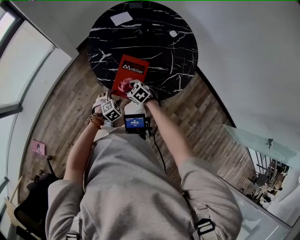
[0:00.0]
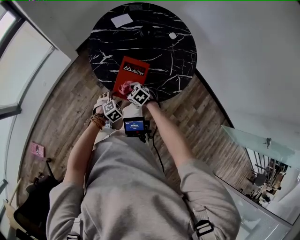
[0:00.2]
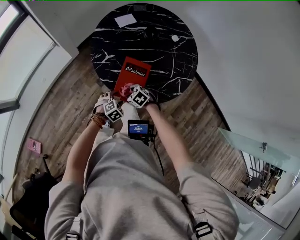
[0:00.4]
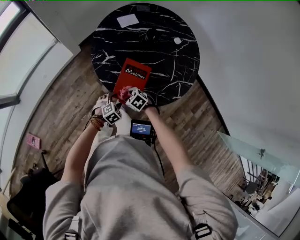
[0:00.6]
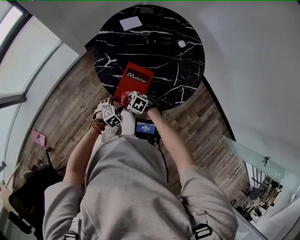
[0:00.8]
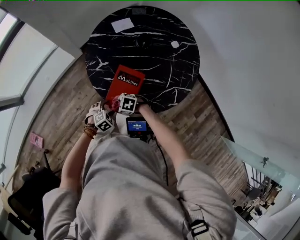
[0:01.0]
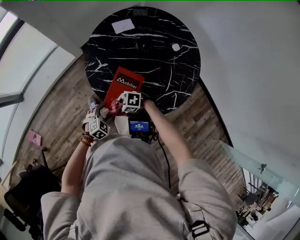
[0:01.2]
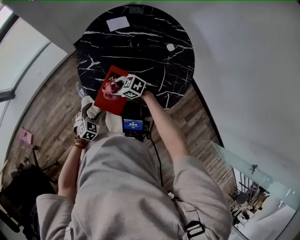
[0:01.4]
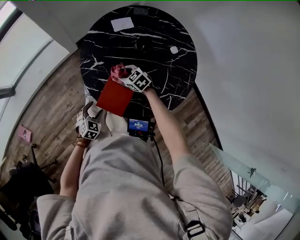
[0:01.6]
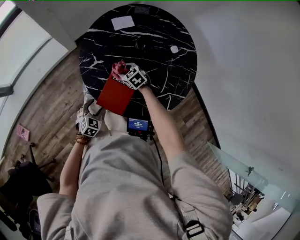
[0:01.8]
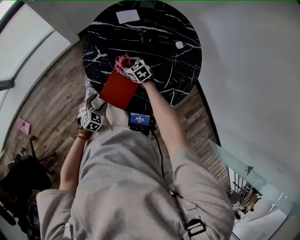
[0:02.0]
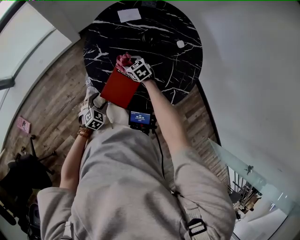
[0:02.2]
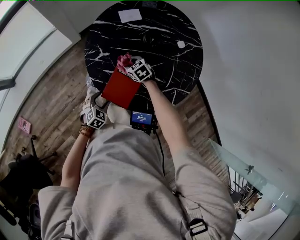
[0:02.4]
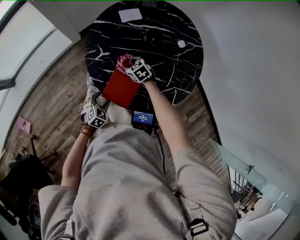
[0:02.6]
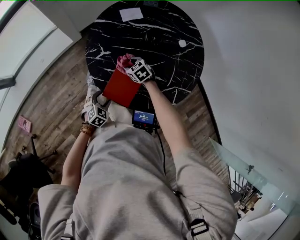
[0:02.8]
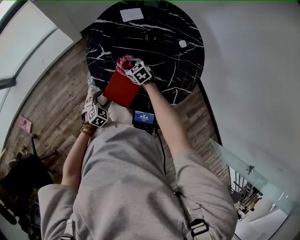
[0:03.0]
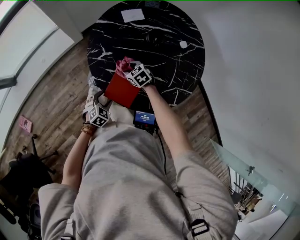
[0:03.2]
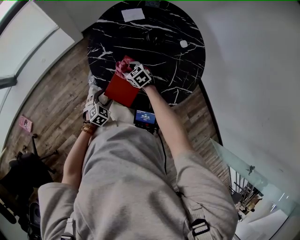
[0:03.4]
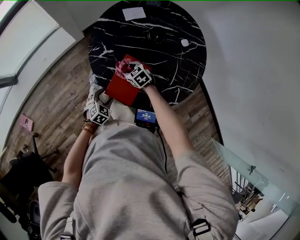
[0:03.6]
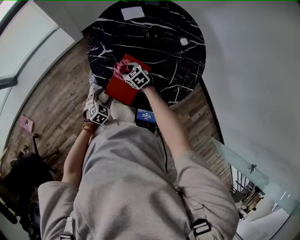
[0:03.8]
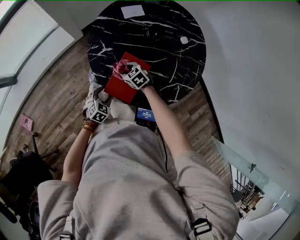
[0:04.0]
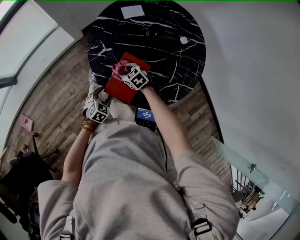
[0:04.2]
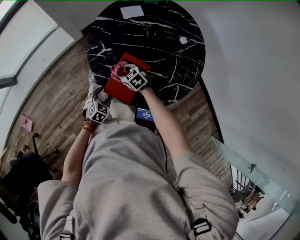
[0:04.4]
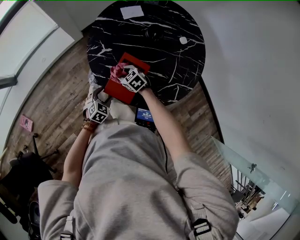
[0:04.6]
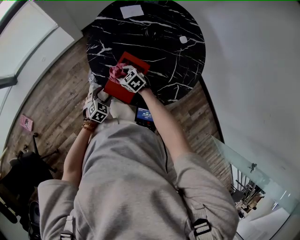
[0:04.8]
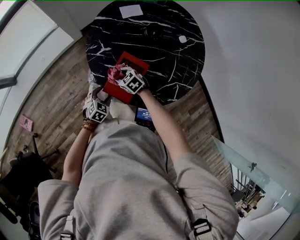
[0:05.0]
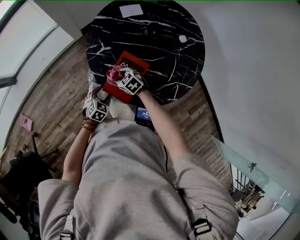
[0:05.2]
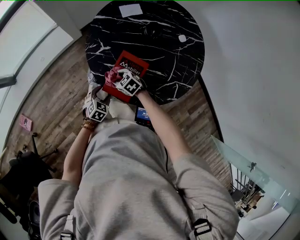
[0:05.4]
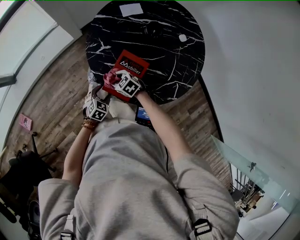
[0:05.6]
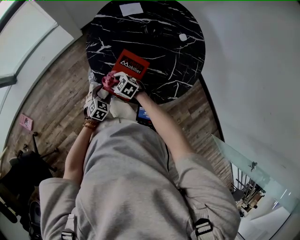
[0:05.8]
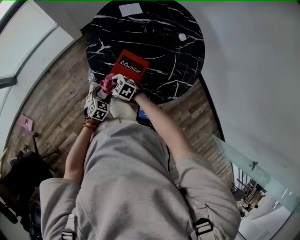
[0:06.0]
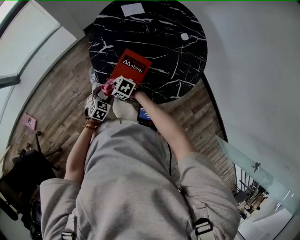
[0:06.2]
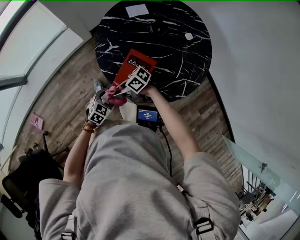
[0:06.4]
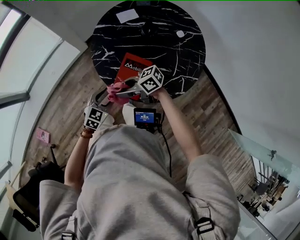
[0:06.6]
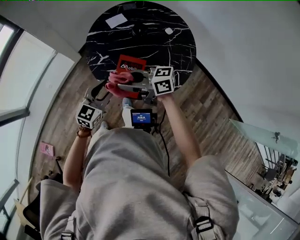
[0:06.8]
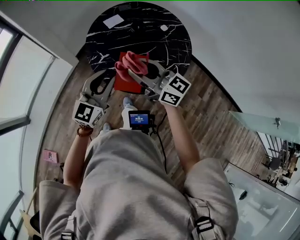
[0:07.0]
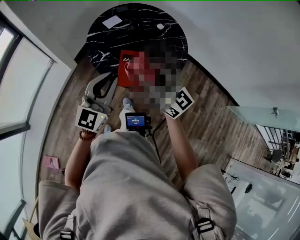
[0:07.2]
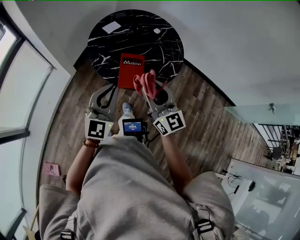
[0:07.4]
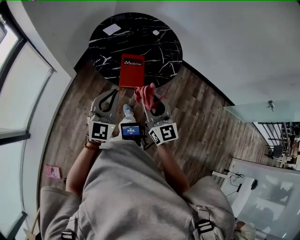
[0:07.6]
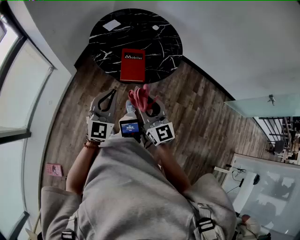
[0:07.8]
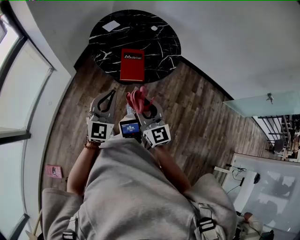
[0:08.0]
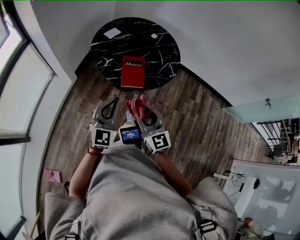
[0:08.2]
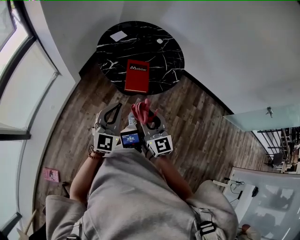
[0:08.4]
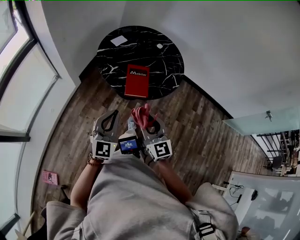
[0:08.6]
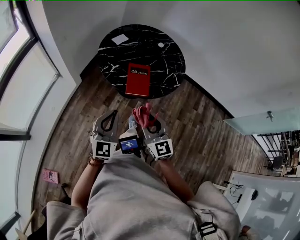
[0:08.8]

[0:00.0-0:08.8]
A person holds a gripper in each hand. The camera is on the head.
0:00.0 to 0:01.4: The left gripper turns by roughly 20 degrees. Meanwhile the right gripper shifts by approximately 10 cm, and turns by some 30 degrees.
0:01.4 to 0:03.0: The right gripper moves about 10 cm, and swivels some 30 degrees.
0:03.0 to 0:04.4: The right gripper shifts some 5 cm backward.
0:04.4 to 0:05.8: The right gripper goes approximately 10 cm to the left and backward.
0:05.8 to 0:07.4: Both grippers move upward, approximately 40 cm. The right gripper angles its fingers upward, by roughly 50 degrees; the left gripper tips its fingers upward by roughly 50 degrees, and closes its fingers.
0:07.4 to 0:08.8: The right gripper goes about 15 cm backward and downward. Meanwhile the left gripper moves backward, about 10 cm.

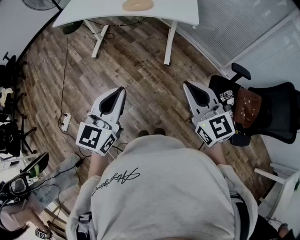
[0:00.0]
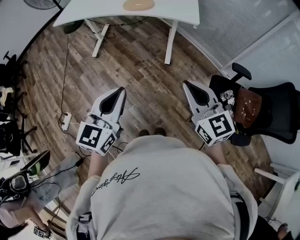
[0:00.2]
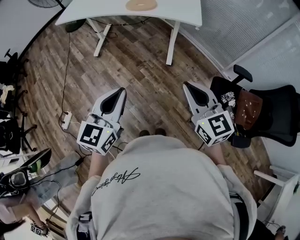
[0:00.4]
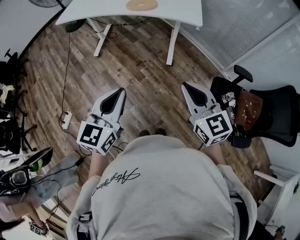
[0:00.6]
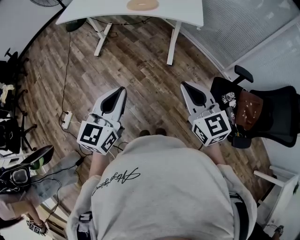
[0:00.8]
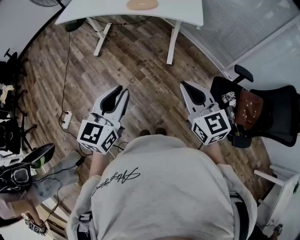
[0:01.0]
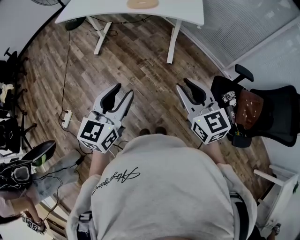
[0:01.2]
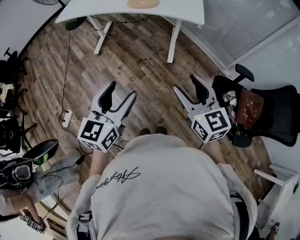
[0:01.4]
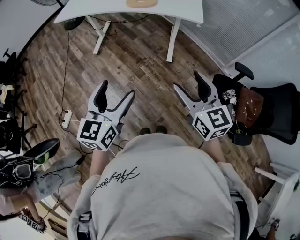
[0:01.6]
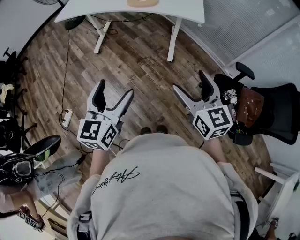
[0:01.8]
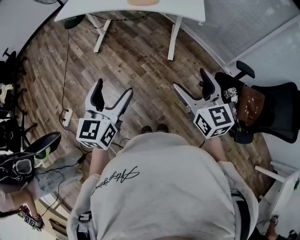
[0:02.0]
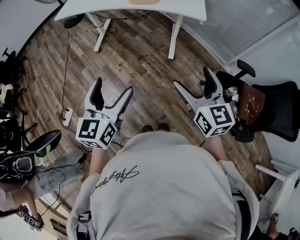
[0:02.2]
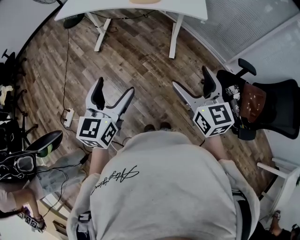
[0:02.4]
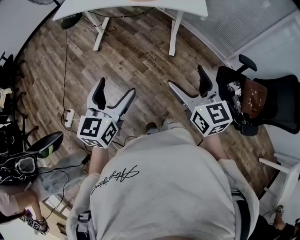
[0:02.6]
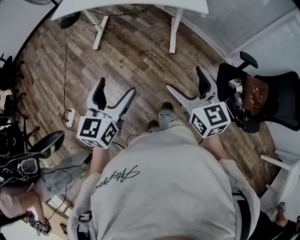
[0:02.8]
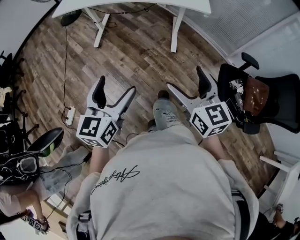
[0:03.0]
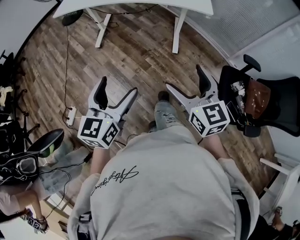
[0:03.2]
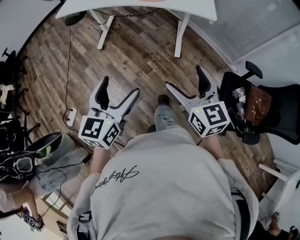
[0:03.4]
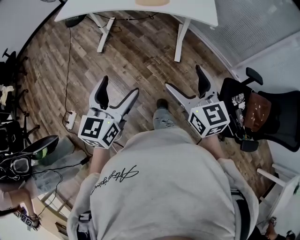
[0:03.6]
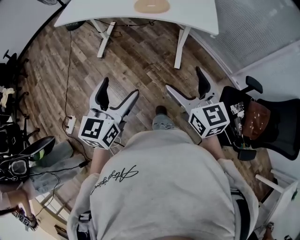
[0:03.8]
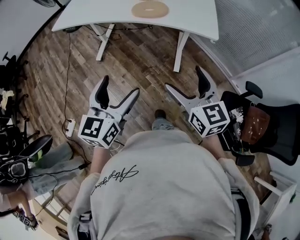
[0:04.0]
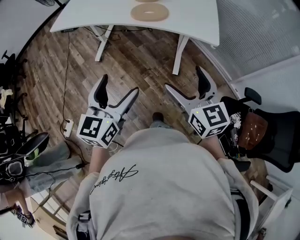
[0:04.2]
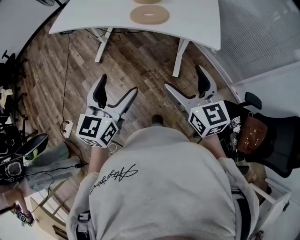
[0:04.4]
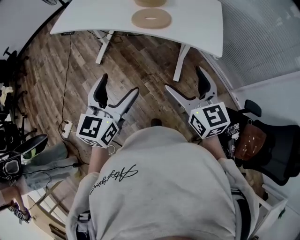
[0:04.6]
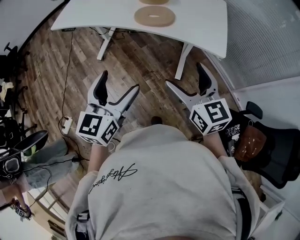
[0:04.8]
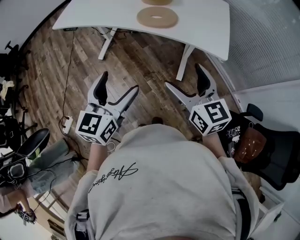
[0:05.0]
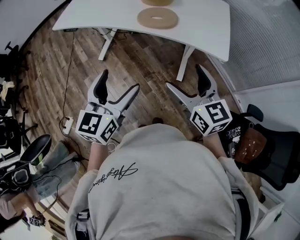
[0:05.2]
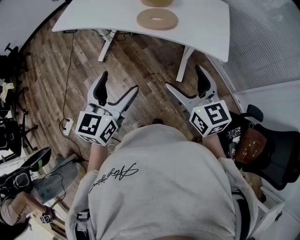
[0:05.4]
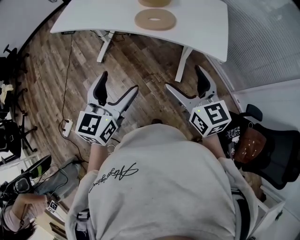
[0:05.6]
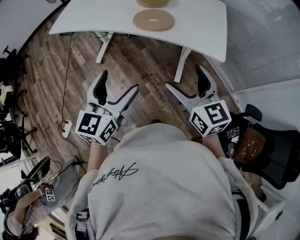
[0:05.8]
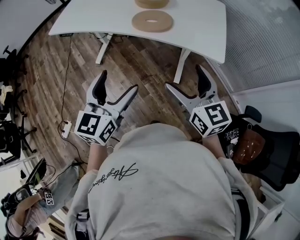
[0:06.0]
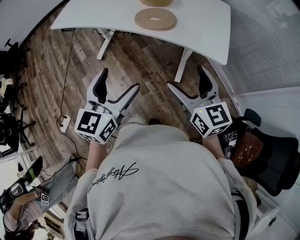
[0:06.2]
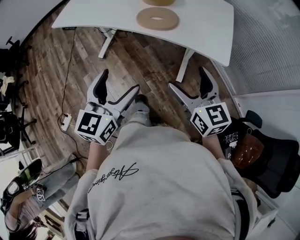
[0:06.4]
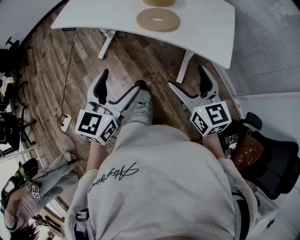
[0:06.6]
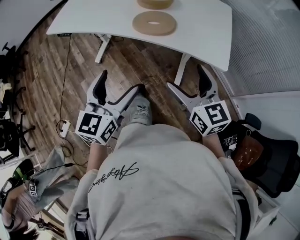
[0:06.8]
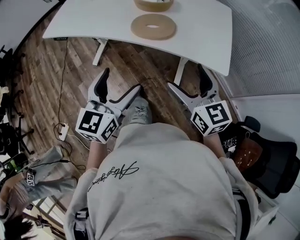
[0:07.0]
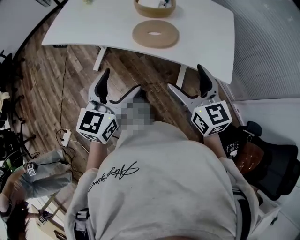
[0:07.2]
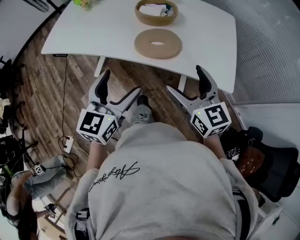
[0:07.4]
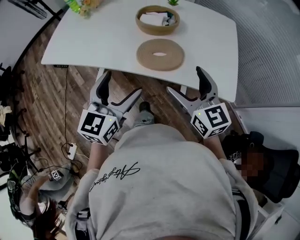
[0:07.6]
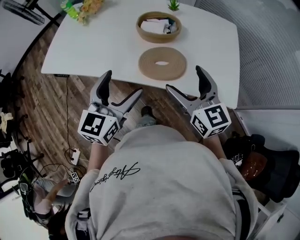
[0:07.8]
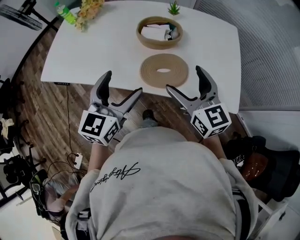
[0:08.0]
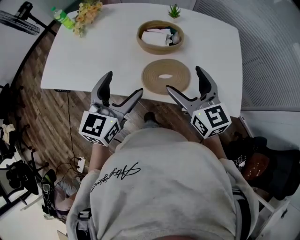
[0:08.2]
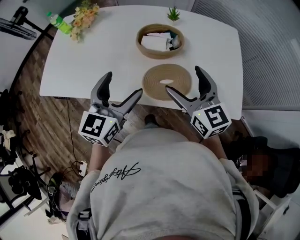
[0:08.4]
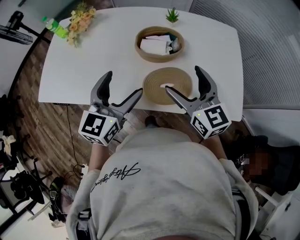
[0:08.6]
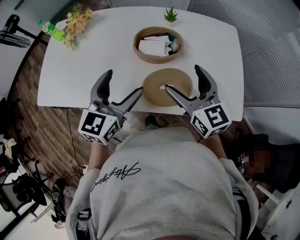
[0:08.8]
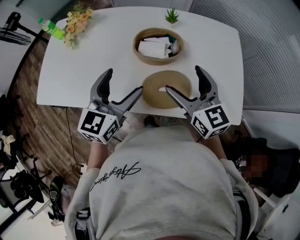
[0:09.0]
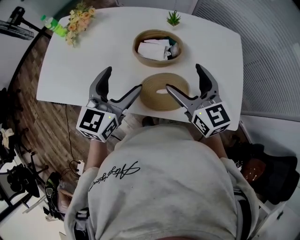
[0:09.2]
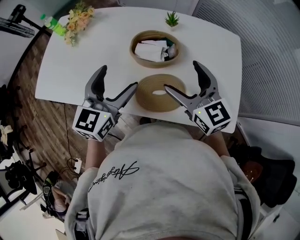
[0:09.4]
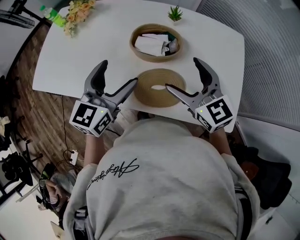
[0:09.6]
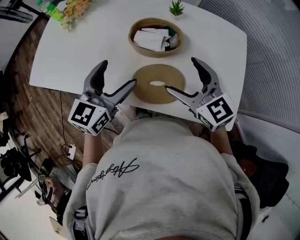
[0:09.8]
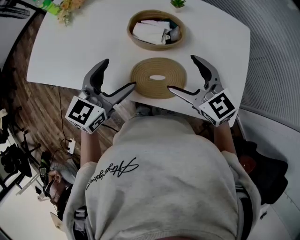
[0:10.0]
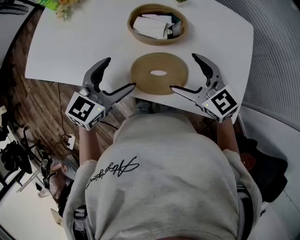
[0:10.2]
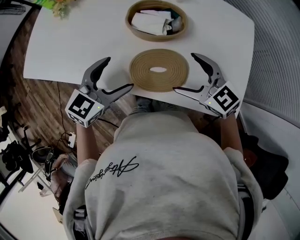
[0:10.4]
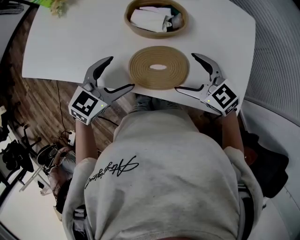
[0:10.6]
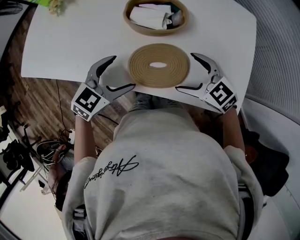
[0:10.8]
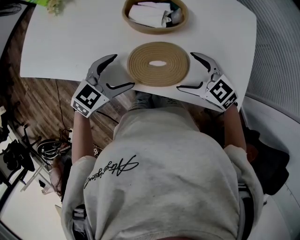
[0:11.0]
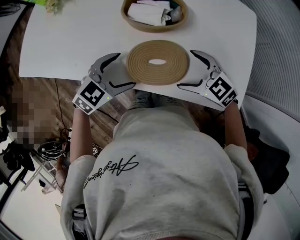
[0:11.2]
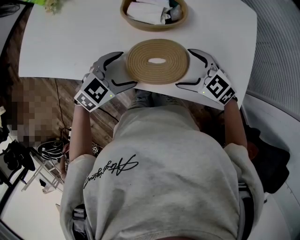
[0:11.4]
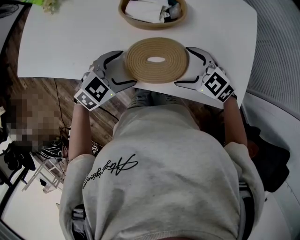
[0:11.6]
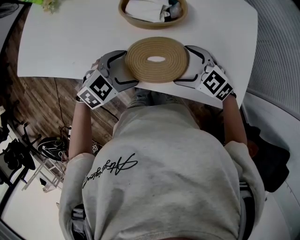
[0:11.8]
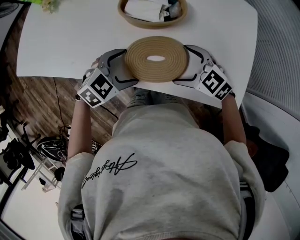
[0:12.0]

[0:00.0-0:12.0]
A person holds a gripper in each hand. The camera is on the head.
0:00.0 to 0:01.6: The right gripper opens its fingers. Meanwhile the left gripper opens.
0:01.6 to 0:03.0: Both grippers move to the left, roughly 10 cm.
0:03.0 to 0:04.4: The grippers both shift forward by approximately 25 cm.
0:04.4 to 0:06.0: The grippers both shift forward by about 5 cm.
0:06.0 to 0:07.6: The grippers both shift forward by some 20 cm.
0:07.6 to 0:09.0: The two grippers go approximately 20 cm forward.
0:09.0 to 0:10.4: The two grippers go about 10 cm downward. The right gripper swivels approximately 40 degrees.
0:10.4 to 0:12.0: The two grippers go roughly 10 cm downward. The left gripper turns by roughly 30 degrees.

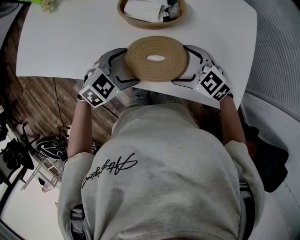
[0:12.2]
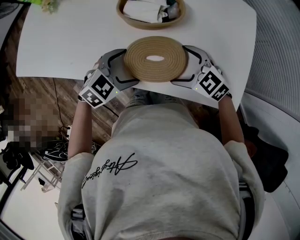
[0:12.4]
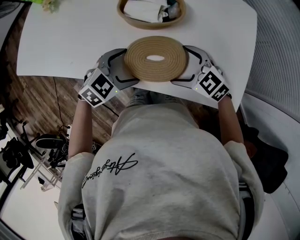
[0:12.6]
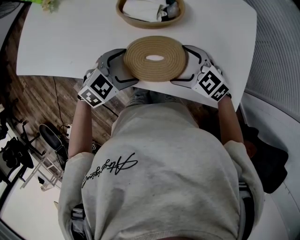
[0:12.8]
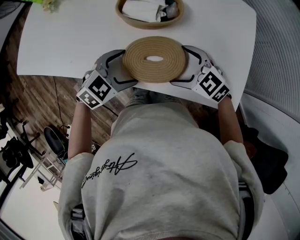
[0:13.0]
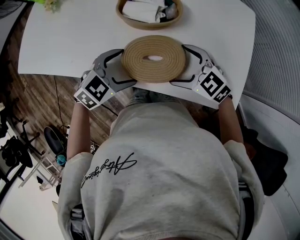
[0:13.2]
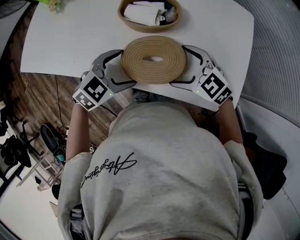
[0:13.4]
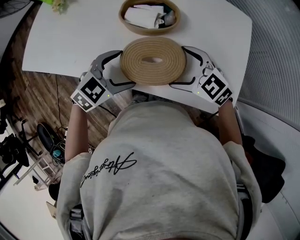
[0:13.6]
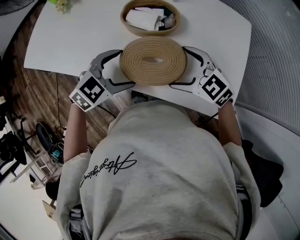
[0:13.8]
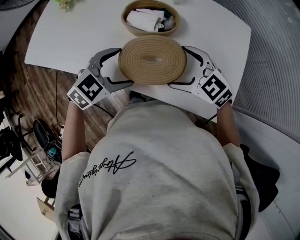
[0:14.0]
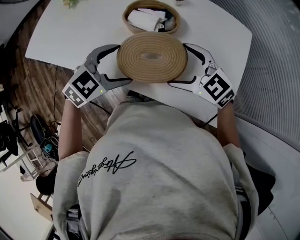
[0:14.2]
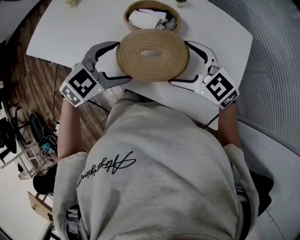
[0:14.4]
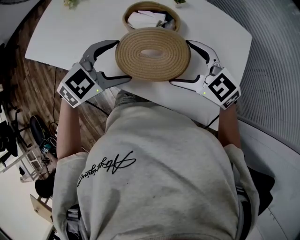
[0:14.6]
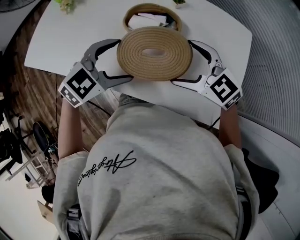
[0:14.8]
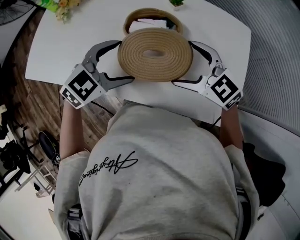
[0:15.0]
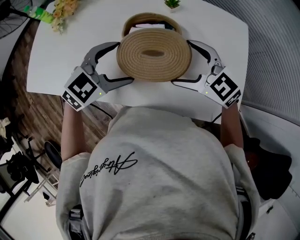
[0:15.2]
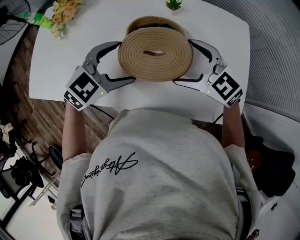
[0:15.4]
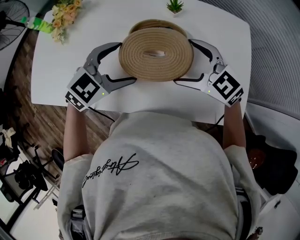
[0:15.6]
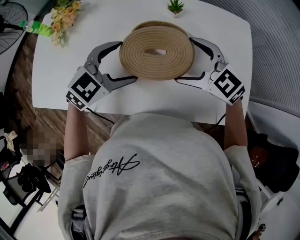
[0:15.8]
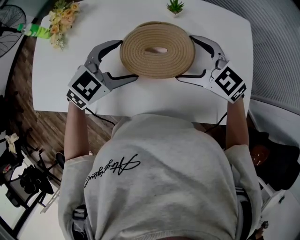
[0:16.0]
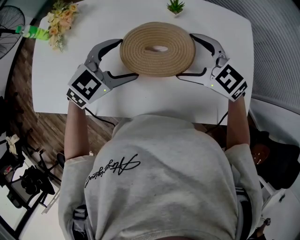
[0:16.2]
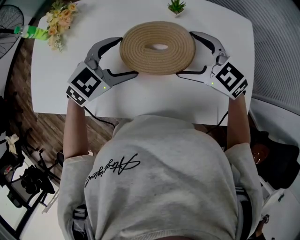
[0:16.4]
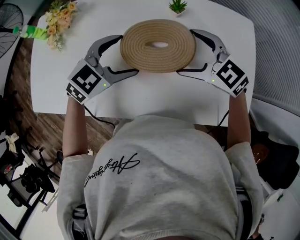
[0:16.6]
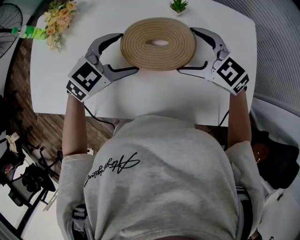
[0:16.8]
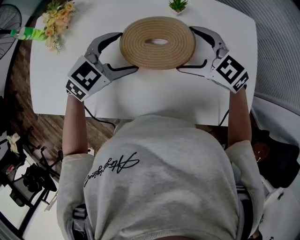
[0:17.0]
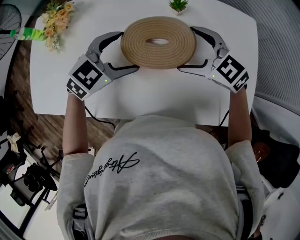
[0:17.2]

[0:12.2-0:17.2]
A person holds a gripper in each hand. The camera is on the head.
0:12.2 to 0:13.8: Both grippers travel together upward, some 5 cm.
0:13.8 to 0:15.6: Both grippers move forward and upward, roughly 10 cm.
0:15.6 to 0:17.2: Both grippers move forward, about 5 cm.
